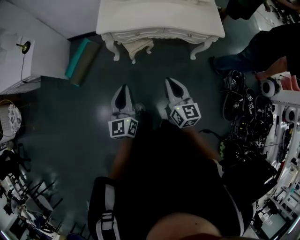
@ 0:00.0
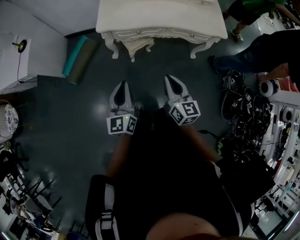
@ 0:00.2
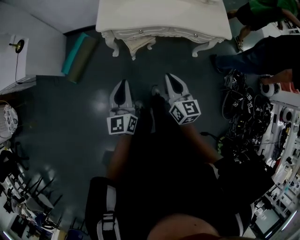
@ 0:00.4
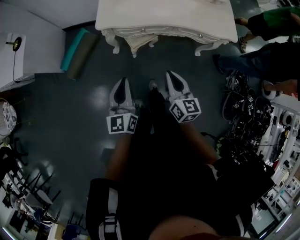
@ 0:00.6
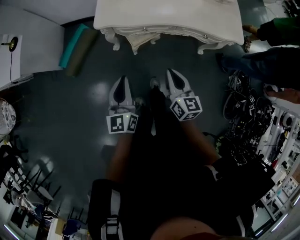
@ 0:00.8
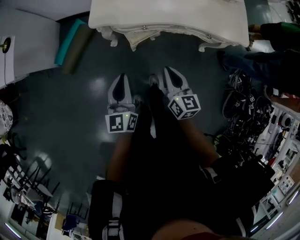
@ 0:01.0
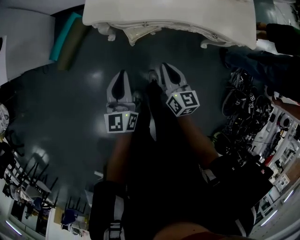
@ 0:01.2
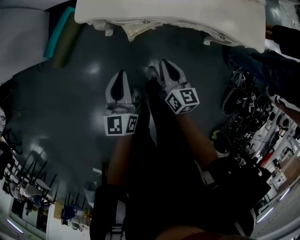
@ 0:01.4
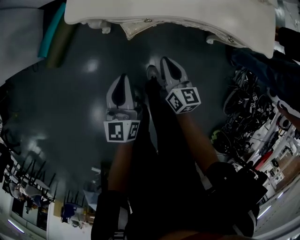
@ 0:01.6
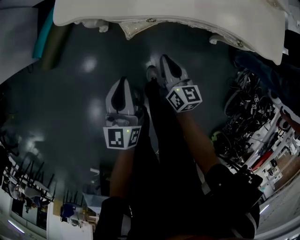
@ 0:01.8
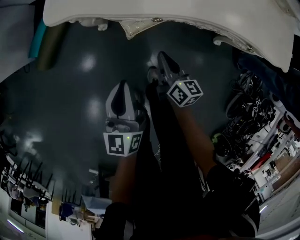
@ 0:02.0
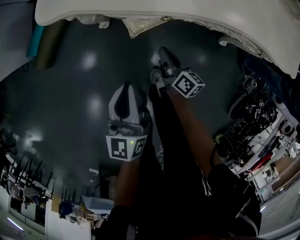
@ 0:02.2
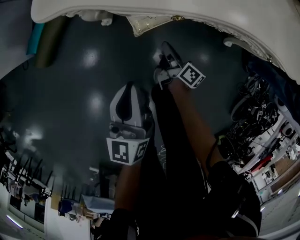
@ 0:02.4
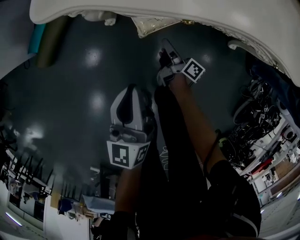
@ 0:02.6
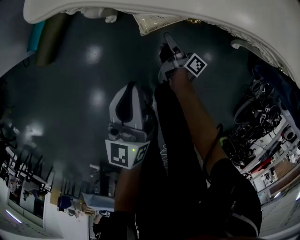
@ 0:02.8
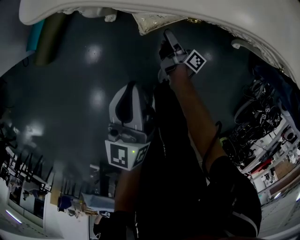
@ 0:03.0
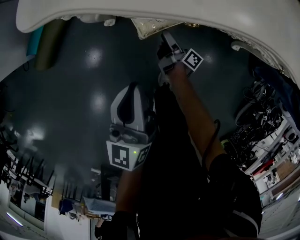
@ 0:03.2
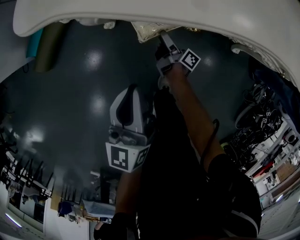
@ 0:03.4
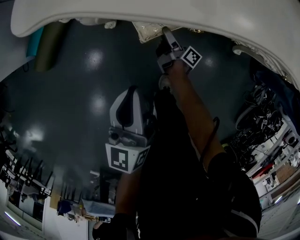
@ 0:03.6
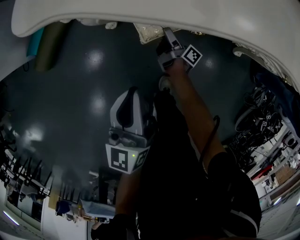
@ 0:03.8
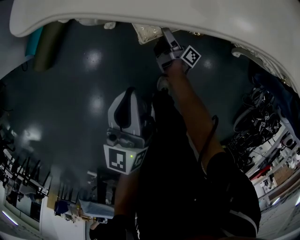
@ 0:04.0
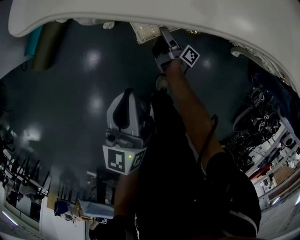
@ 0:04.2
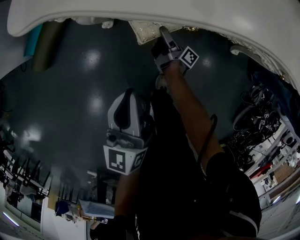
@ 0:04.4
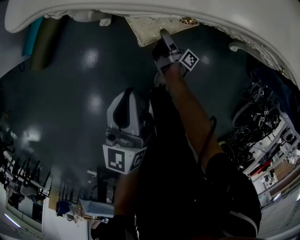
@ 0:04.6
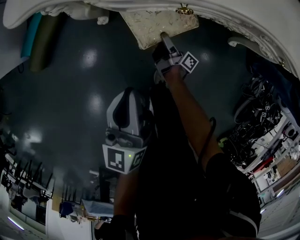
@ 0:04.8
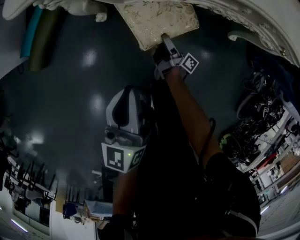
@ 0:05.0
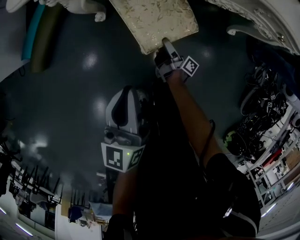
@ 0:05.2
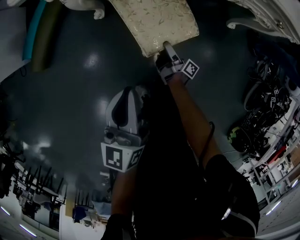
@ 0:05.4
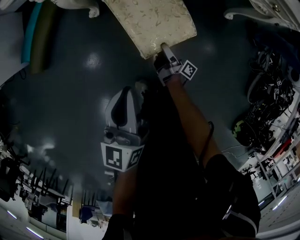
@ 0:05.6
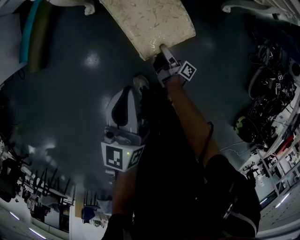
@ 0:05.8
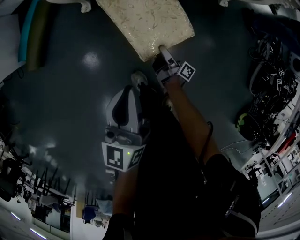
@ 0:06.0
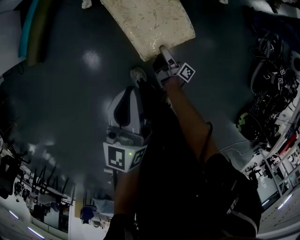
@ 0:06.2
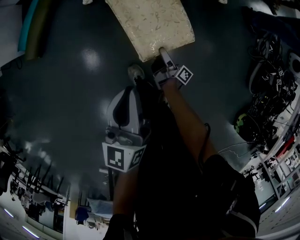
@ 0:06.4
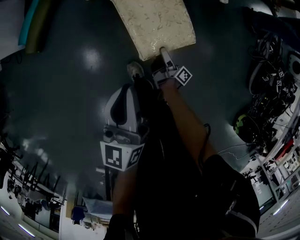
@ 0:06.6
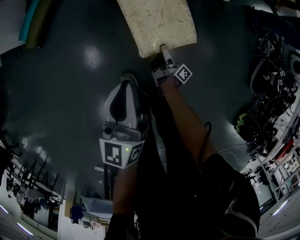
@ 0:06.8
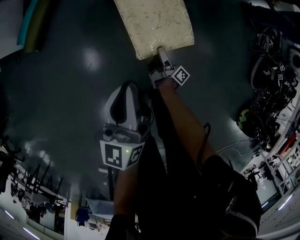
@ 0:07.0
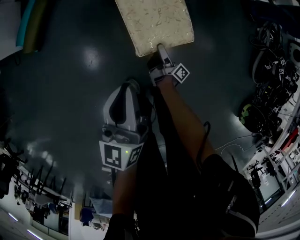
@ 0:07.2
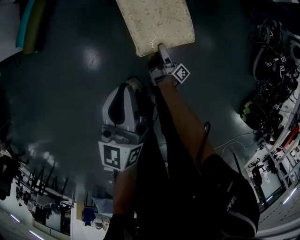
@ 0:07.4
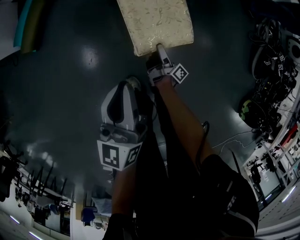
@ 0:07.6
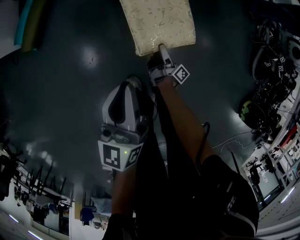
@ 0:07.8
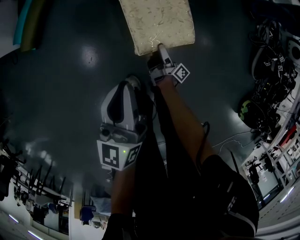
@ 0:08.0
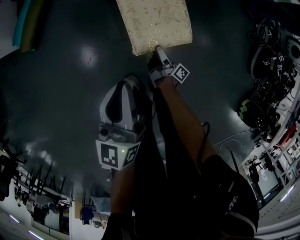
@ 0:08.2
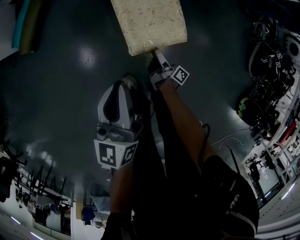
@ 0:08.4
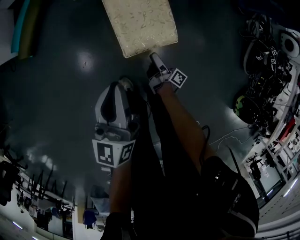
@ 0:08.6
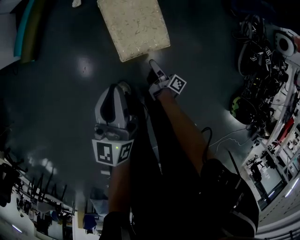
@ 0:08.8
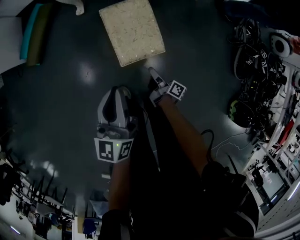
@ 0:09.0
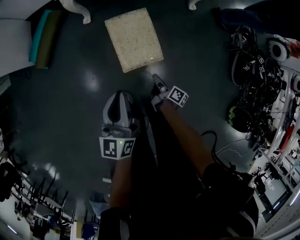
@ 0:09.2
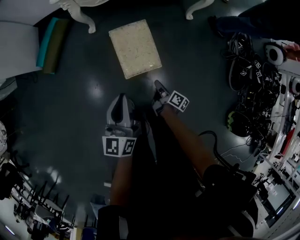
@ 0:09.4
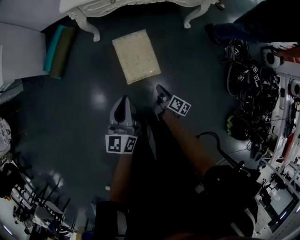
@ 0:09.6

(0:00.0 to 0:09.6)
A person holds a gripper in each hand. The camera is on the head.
0:00.0 - 0:01.6: The left gripper moves forward and downward, some 35 cm, while the right gripper shifts roughly 40 cm downward and forward.
0:01.6 - 0:03.2: The right gripper shifts some 35 cm downward, rolls clockwise, seen from behind, by about 60 degrees, and opens, while the left gripper moves downward, approximately 15 cm.
0:03.2 - 0:04.8: The grippers make only small movements.
0:04.8 - 0:06.4: Both grippers travel together backward, roughly 30 cm.
0:06.4 - 0:08.0: The left gripper is displaced backward and to the left by about 10 cm. Meanwhile the right gripper heads backward, covering roughly 10 cm.
0:08.0 - 0:09.6: The right gripper moves upward, approximately 30 cm, turns by roughly 40 degrees, and closes its fingers. The left gripper heads upward and to the right, covering roughly 25 cm.

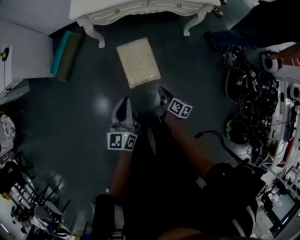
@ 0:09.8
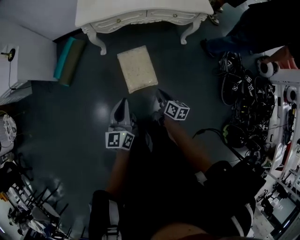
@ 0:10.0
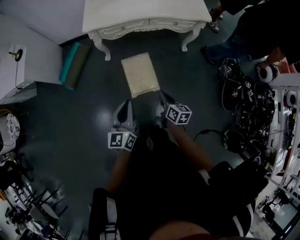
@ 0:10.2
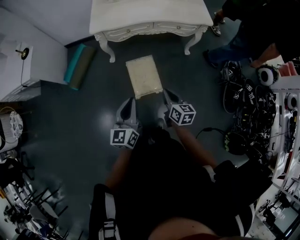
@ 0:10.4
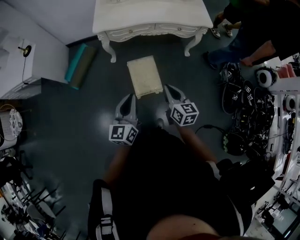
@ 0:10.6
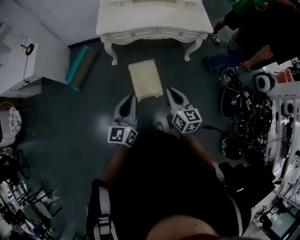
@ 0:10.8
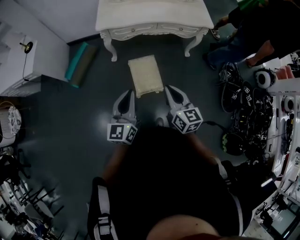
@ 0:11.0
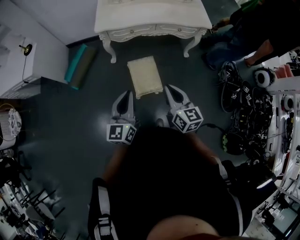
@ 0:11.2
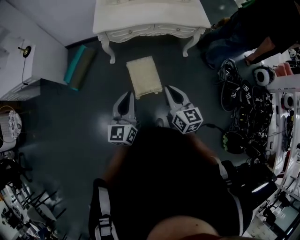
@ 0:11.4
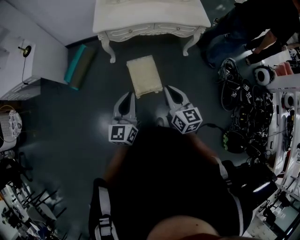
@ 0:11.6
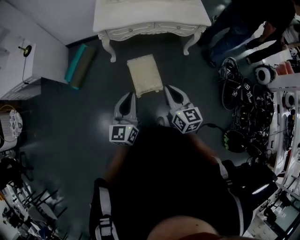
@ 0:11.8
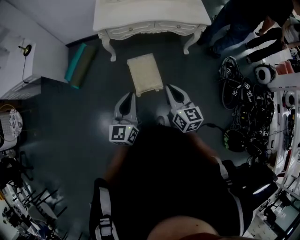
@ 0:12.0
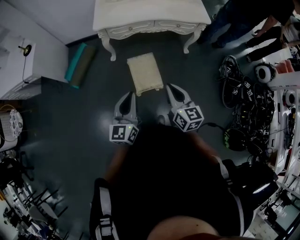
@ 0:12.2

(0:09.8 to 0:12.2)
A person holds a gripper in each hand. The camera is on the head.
0:09.8 - 0:11.0: The right gripper heads upward, covering approximately 35 cm, and rotates around the line of its fingers by roughly 40 degrees, counterclockwise from behind. Meanwhile the left gripper shifts about 15 cm upward.
0:11.0 - 0:12.2: The grippers stay close to where they were, moving slightly.

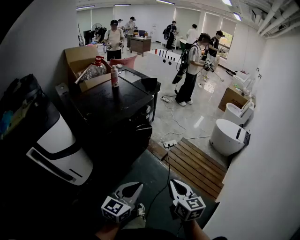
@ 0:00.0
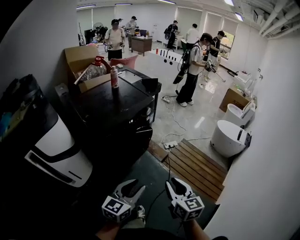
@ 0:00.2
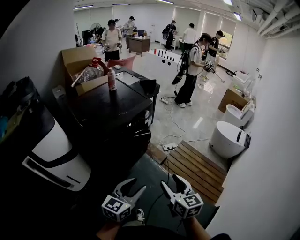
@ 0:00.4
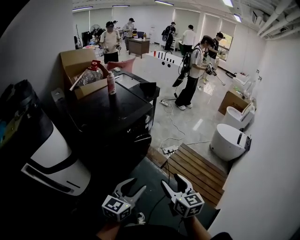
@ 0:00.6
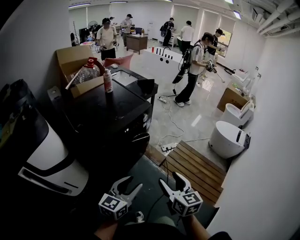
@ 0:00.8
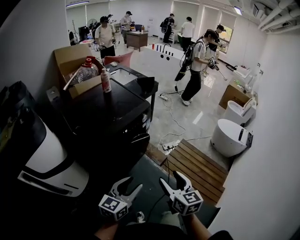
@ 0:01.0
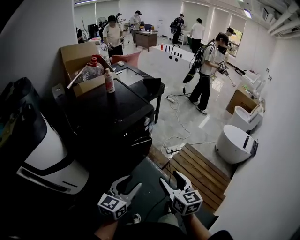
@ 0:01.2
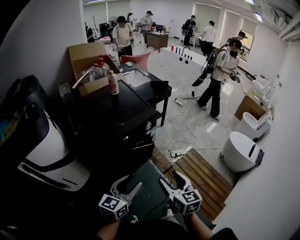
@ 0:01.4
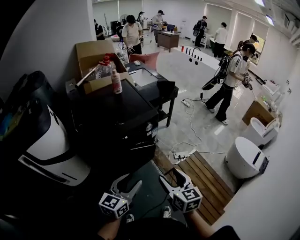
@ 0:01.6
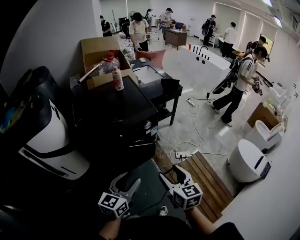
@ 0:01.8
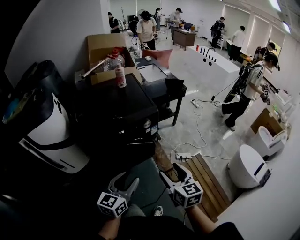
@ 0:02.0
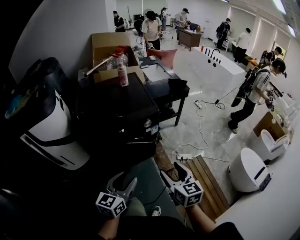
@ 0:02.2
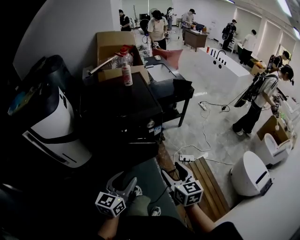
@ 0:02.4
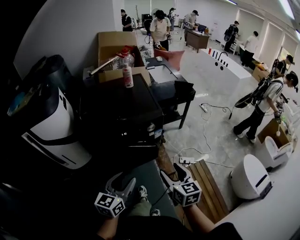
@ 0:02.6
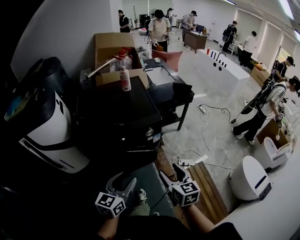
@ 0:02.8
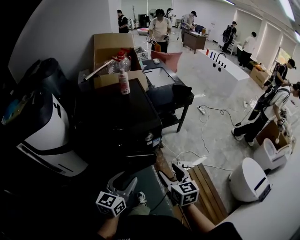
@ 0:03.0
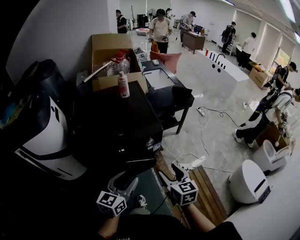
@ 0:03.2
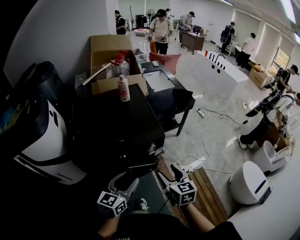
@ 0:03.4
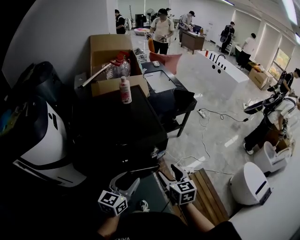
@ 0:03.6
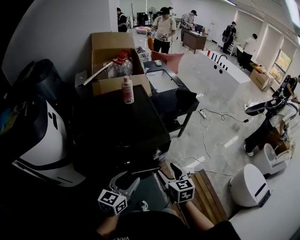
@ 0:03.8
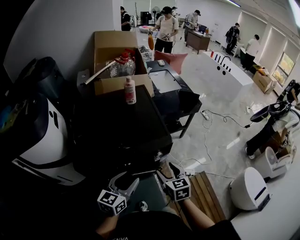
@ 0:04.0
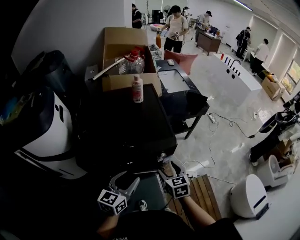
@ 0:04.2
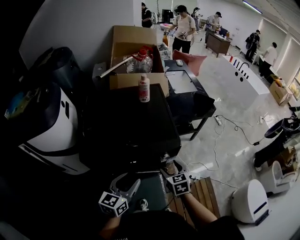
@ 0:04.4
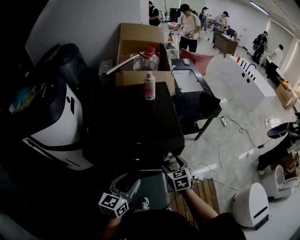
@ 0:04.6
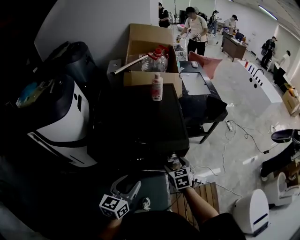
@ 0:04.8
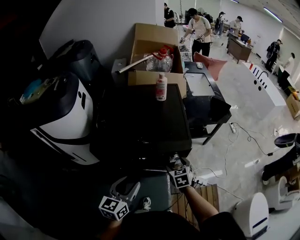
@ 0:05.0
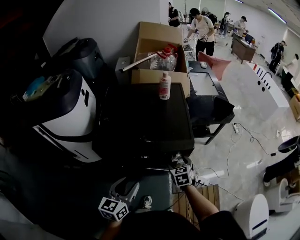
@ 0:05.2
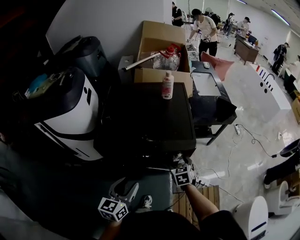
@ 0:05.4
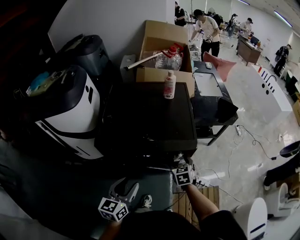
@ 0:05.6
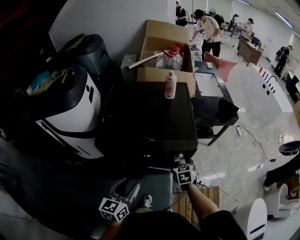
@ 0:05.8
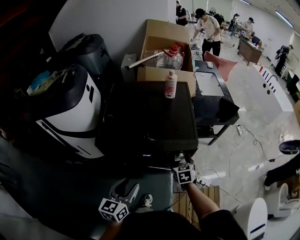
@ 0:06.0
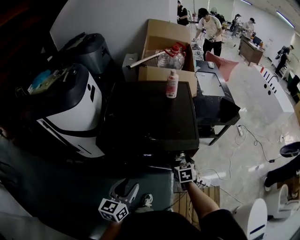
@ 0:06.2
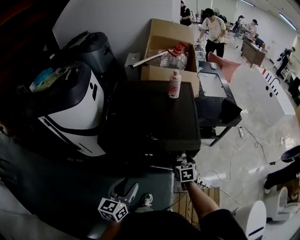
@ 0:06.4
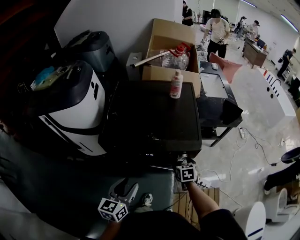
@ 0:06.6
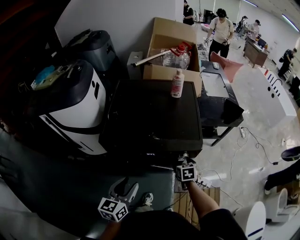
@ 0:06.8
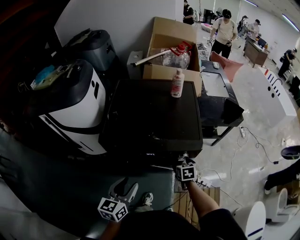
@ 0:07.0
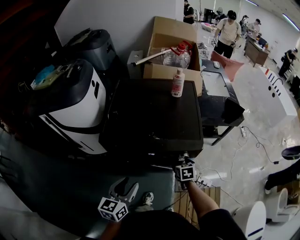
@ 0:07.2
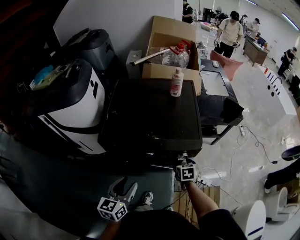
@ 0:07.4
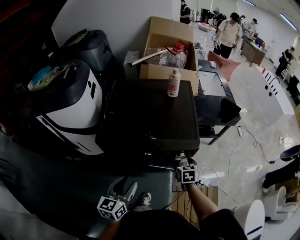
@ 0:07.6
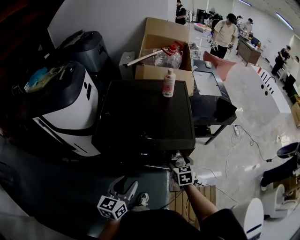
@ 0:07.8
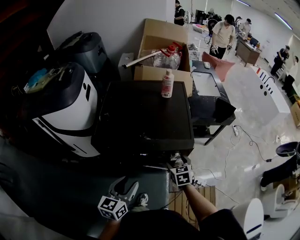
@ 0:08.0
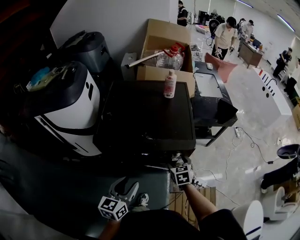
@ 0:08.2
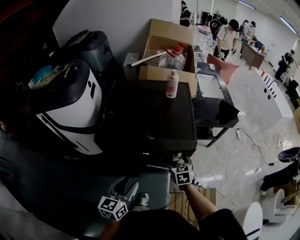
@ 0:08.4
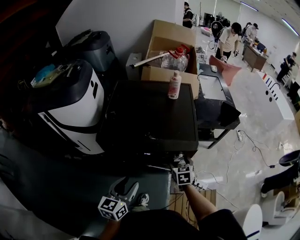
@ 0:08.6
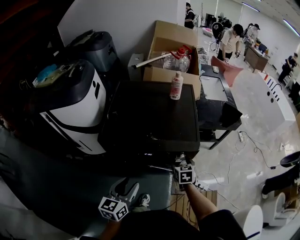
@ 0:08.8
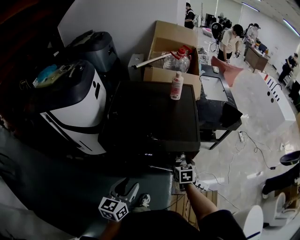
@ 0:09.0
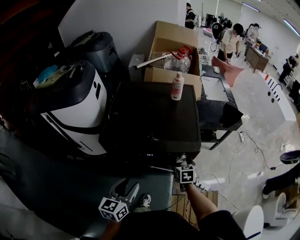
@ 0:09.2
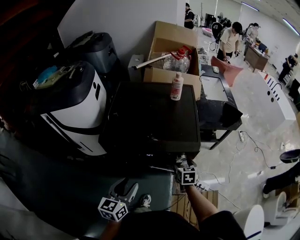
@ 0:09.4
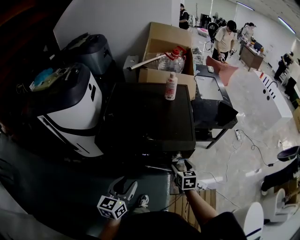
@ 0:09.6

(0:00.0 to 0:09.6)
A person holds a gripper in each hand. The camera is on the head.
0:00.0 - 0:01.6: The two grippers go about 30 cm forward. The right gripper opens up; the left gripper changes its angle by some 20 degrees, and opens up.
0:01.6 - 0:03.2: Both grippers move forward, about 15 cm.
0:03.2 - 0:04.8: The left gripper shifts approximately 10 cm forward and to the left; the right gripper goes roughly 20 cm forward and downward, and rotates roughly 30 degrees.
0:04.8 - 0:06.4: The right gripper goes about 5 cm downward; the left gripper ends up roughly 5 cm from where it was.
0:06.4 - 0:08.0: The grippers make only small movements.
0:08.0 - 0:09.6: There are only small adjustments of the grippers.

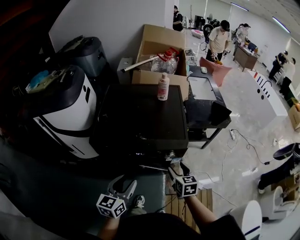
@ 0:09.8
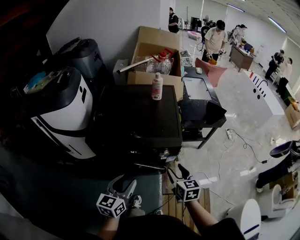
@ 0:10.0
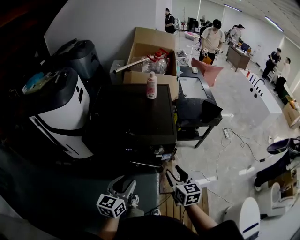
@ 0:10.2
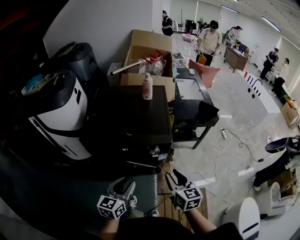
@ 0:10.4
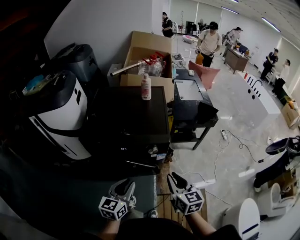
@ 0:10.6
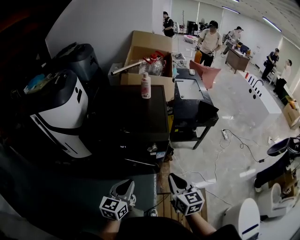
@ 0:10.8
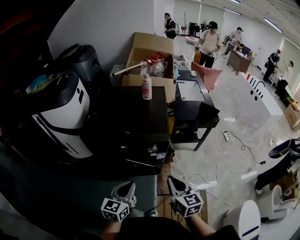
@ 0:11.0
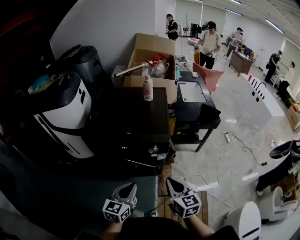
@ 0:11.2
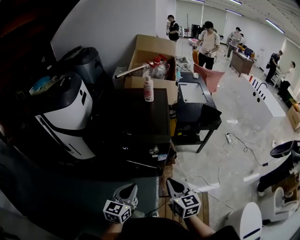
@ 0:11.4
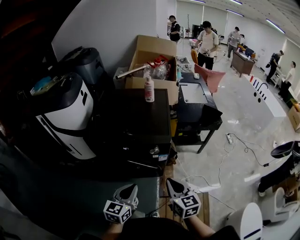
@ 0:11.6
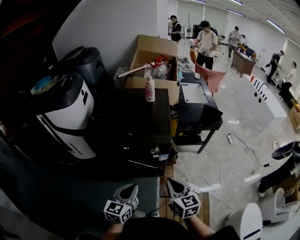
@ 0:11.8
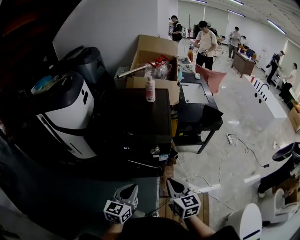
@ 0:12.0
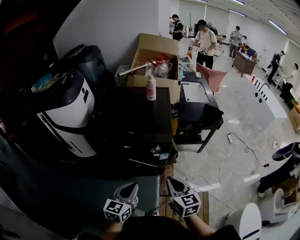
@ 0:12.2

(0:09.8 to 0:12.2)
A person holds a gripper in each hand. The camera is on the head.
0:09.8 - 0:11.0: The left gripper travels to the right and backward by approximately 15 cm, and closes; the right gripper travels backward, upward and to the right by some 20 cm, and closes its fingers.
0:11.0 - 0:12.2: Both grippers stay put.
